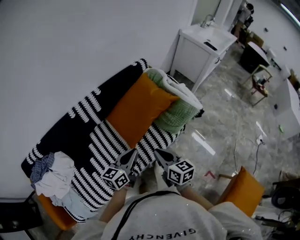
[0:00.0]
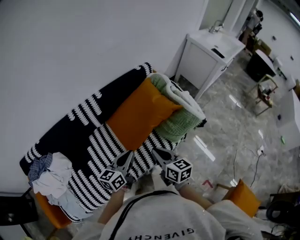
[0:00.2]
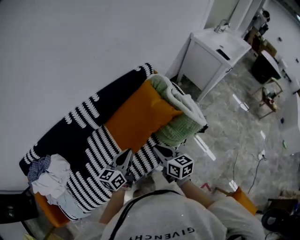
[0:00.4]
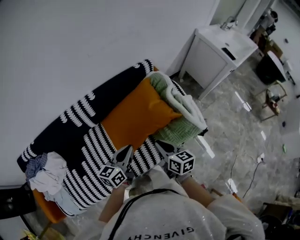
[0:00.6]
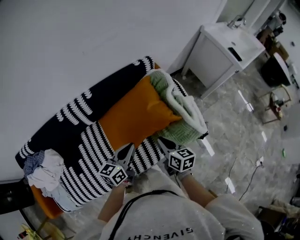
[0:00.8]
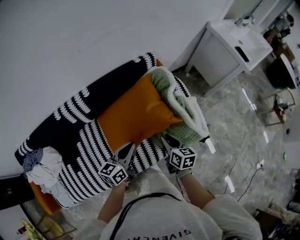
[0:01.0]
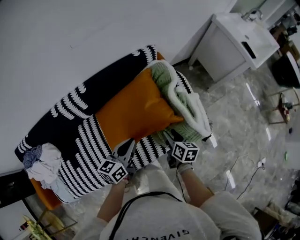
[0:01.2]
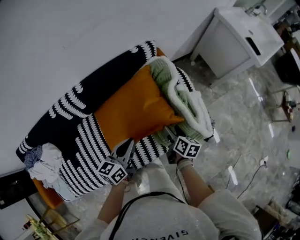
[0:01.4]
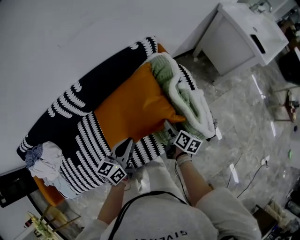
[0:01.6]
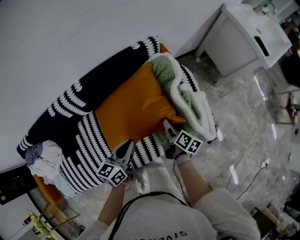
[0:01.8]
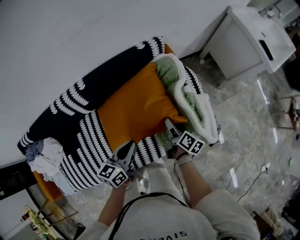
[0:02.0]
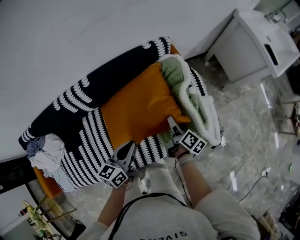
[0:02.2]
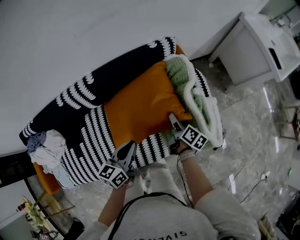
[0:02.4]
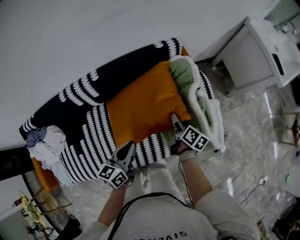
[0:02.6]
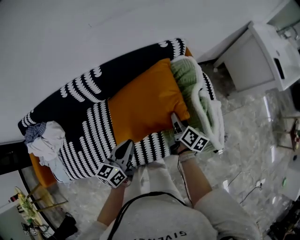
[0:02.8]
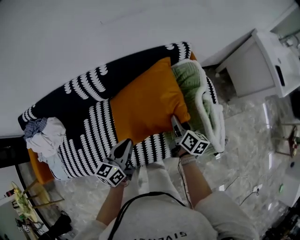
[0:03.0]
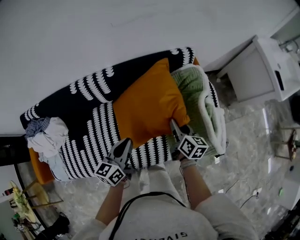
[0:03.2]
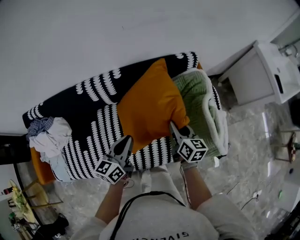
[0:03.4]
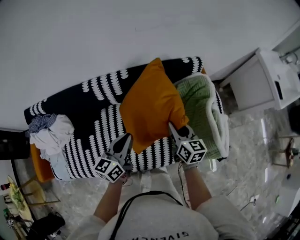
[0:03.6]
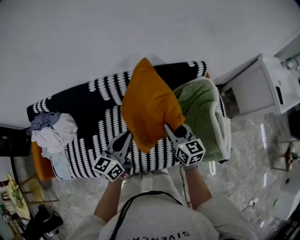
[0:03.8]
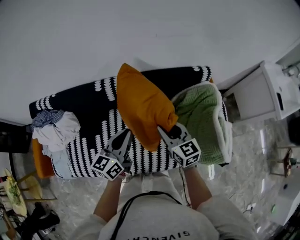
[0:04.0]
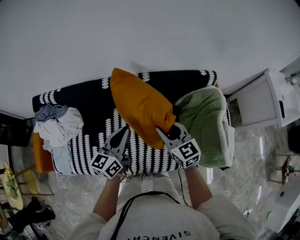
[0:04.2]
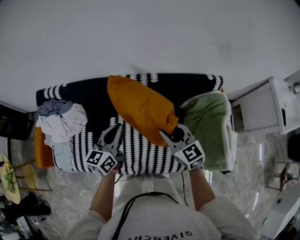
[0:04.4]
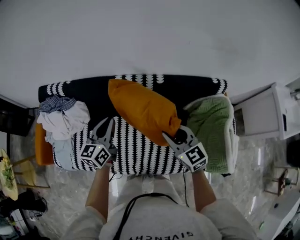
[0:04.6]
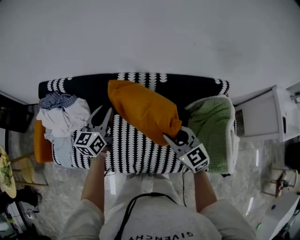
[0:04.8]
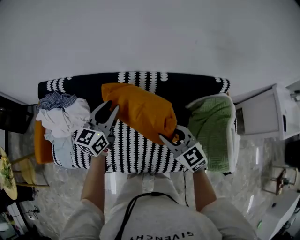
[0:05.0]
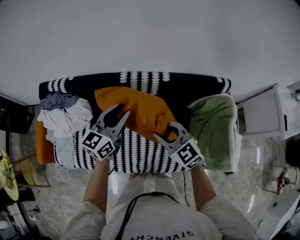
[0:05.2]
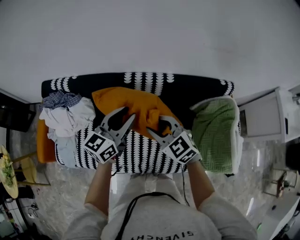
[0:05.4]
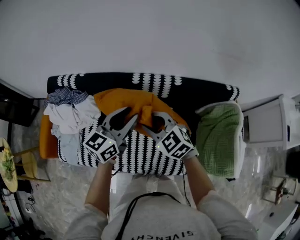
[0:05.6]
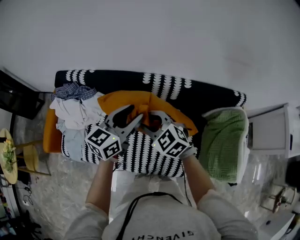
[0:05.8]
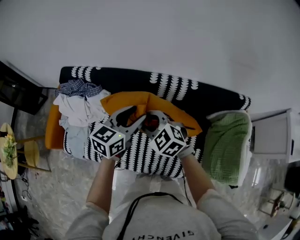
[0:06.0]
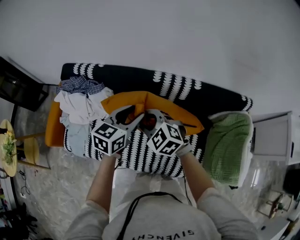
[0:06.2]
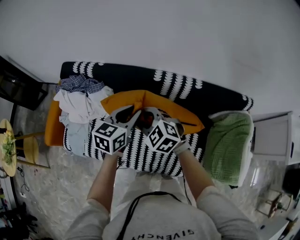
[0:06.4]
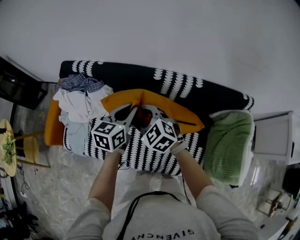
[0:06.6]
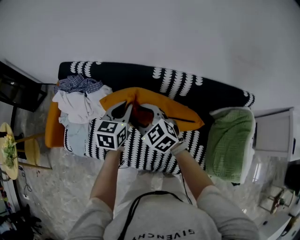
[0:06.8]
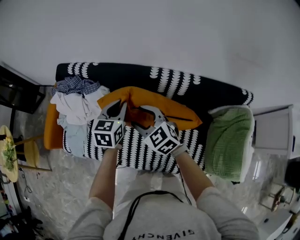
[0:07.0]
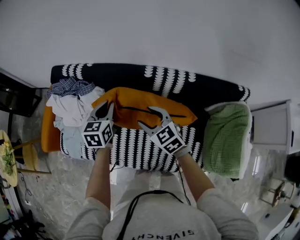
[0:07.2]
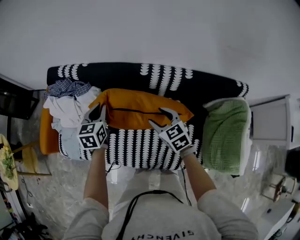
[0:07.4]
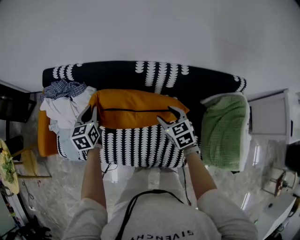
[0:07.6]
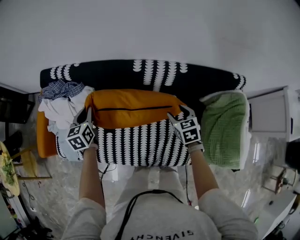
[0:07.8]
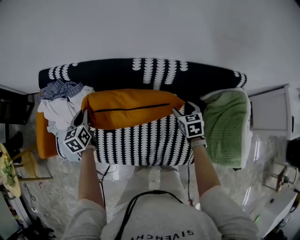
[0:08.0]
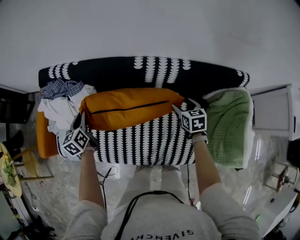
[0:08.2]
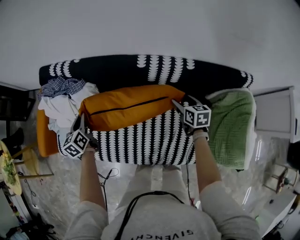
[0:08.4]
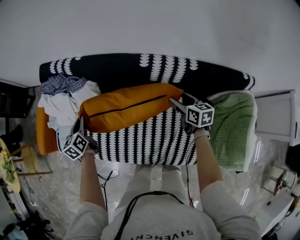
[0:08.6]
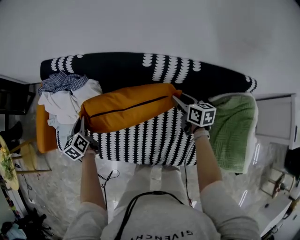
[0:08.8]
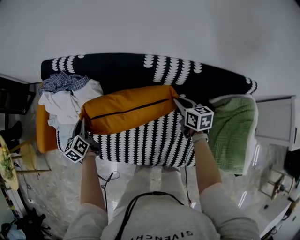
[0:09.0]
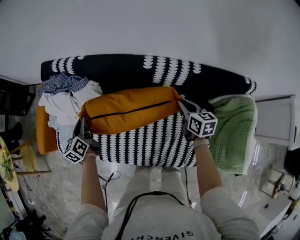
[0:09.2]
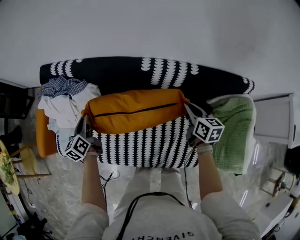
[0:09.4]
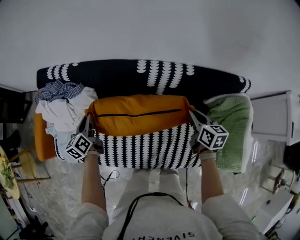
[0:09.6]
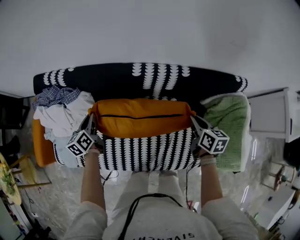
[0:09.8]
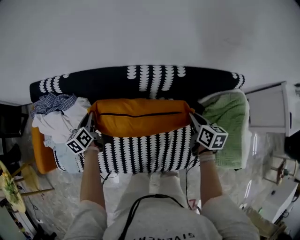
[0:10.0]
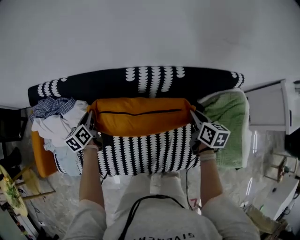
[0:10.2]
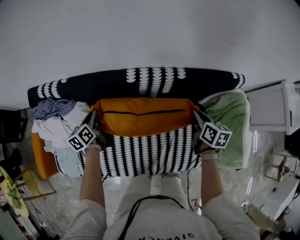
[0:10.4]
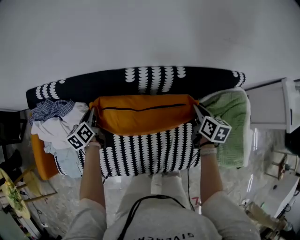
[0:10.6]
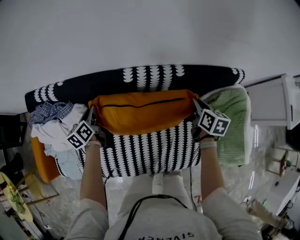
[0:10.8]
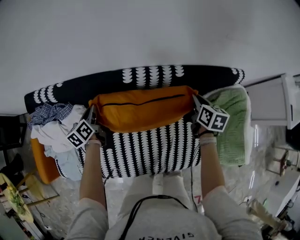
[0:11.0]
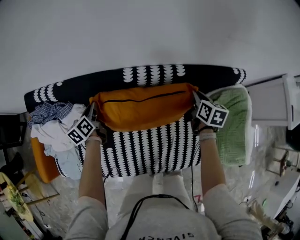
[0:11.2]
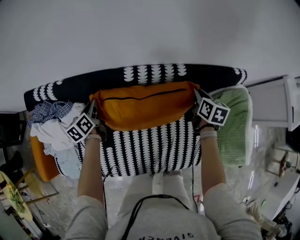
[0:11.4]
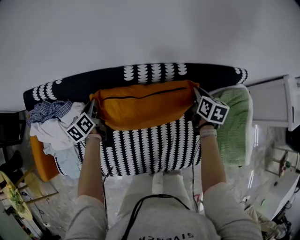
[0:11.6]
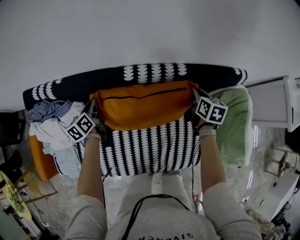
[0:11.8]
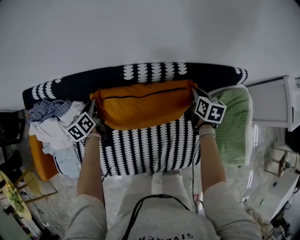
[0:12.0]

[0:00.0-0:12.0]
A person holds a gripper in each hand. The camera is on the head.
0:00.0 to 0:01.6: The left gripper shifts approximately 25 cm forward and to the right, and changes its angle by some 20 degrees. Meanwhile the right gripper heads forward, to the right and downward, covering about 50 cm, turns by approximately 30 degrees, and opens up.
0:01.6 to 0:03.0: The grippers both shift to the left by approximately 10 cm. The right gripper closes up.
0:03.0 to 0:04.4: Both grippers move to the left and upward, approximately 30 cm. The left gripper swivels approximately 20 degrees, while the right gripper rolls counterclockwise, seen from behind, by some 60 degrees.
0:04.4 to 0:06.0: The left gripper swings left and right, roughly 10 cm each way, with 2 reversals, and opens. Meanwhile the right gripper travels to the left by about 25 cm, and changes its angle by about 40 degrees.
0:06.0 to 0:07.6: The left gripper shifts some 20 cm to the left, downward and forward, rotates roughly 30 degrees, and closes its fingers, while the right gripper moves to the right and downward, some 20 cm, and rotates roughly 40 degrees.
0:07.6 to 0:09.0: The right gripper moves forward, about 5 cm, swivels about 30 degrees, and closes up. The left gripper shifts some 15 cm to the left and downward, and swivels roughly 30 degrees.
0:09.0 to 0:10.4: The right gripper changes place by some 15 cm, and changes its angle by roughly 30 degrees, while the left gripper ends up approximately 20 cm from where it was.
0:10.4 to 0:12.0: The left gripper is displaced forward by about 5 cm. Meanwhile the right gripper is displaced forward by some 10 cm.

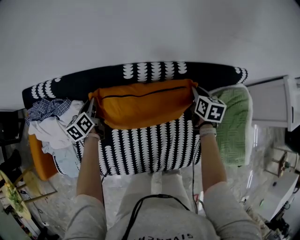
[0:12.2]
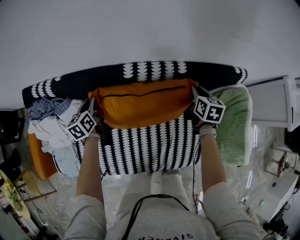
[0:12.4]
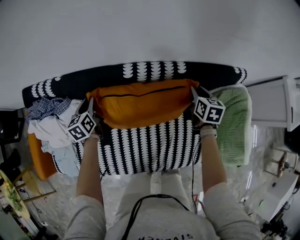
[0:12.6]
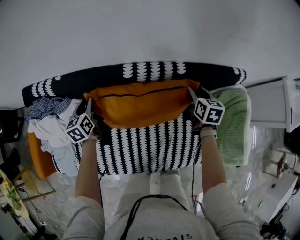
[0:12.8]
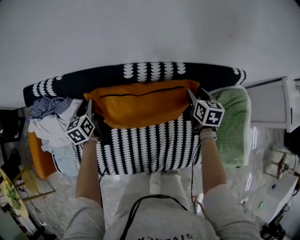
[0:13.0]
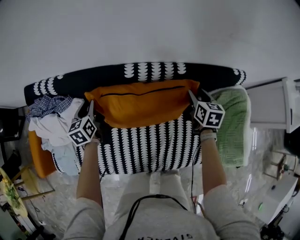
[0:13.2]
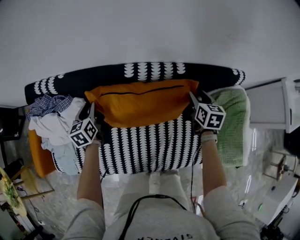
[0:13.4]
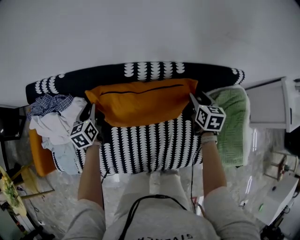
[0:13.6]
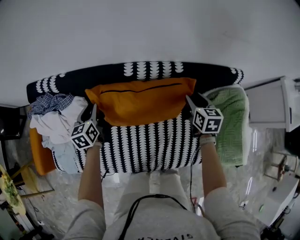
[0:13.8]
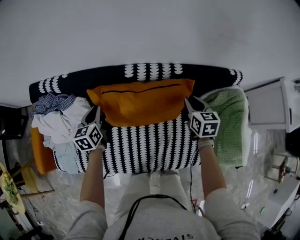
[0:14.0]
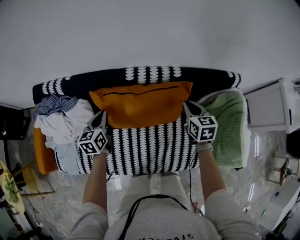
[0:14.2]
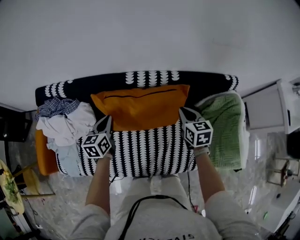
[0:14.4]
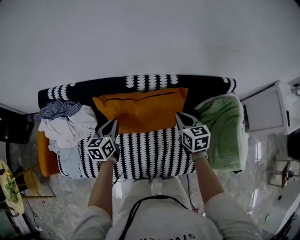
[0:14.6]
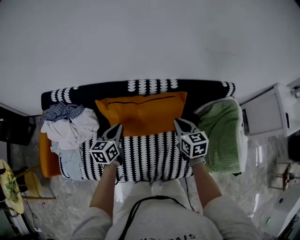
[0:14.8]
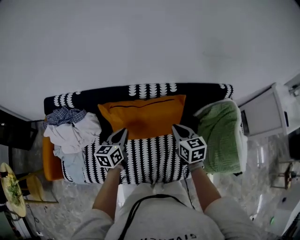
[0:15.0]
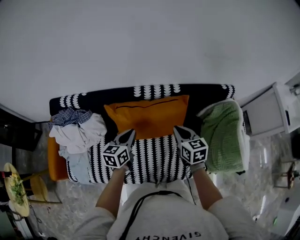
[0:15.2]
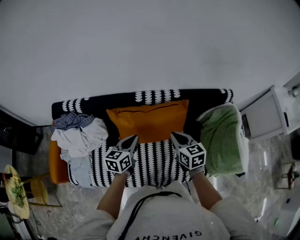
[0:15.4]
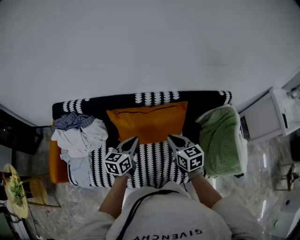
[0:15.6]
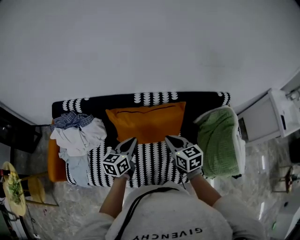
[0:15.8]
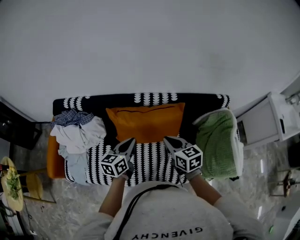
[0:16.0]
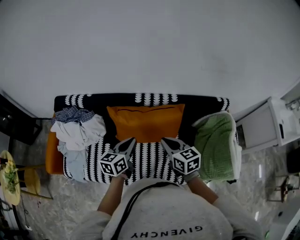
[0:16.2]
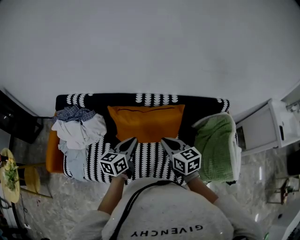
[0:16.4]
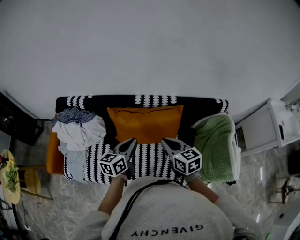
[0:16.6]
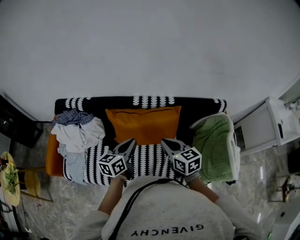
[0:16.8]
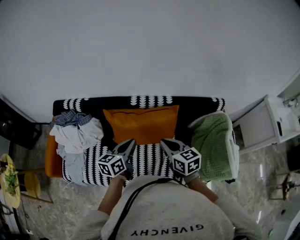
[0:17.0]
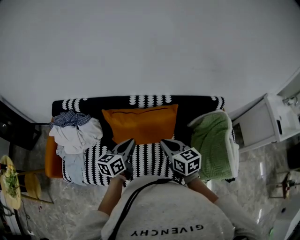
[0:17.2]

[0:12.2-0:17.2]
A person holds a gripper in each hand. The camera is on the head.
0:12.2 to 0:13.8: Both grippers travel together backward, roughly 5 cm. The right gripper opens its fingers.
0:13.8 to 0:15.6: The left gripper goes about 25 cm to the right, backward and upward, changes its angle by some 30 degrees, and closes up. The right gripper travels backward, to the left and upward by some 25 cm, changes its angle by some 20 degrees, and closes.
0:15.6 to 0:17.2: The right gripper moves some 5 cm; the left gripper shifts about 5 cm upward.

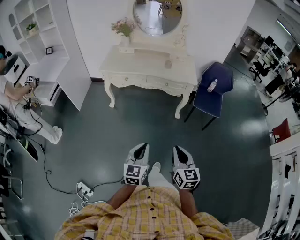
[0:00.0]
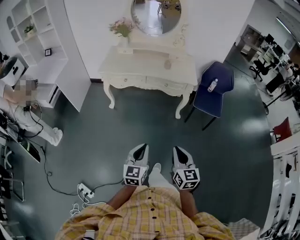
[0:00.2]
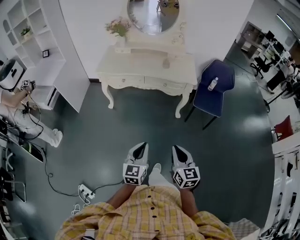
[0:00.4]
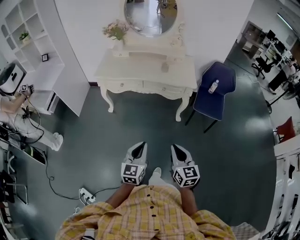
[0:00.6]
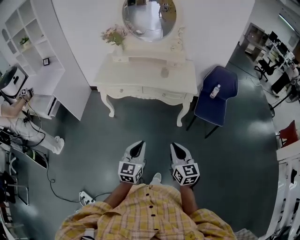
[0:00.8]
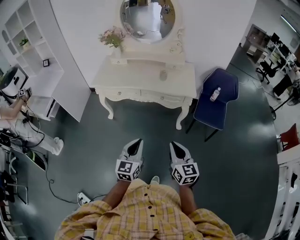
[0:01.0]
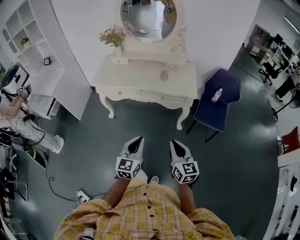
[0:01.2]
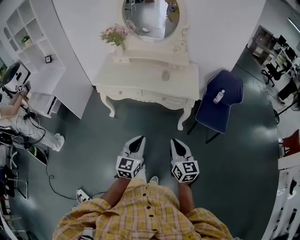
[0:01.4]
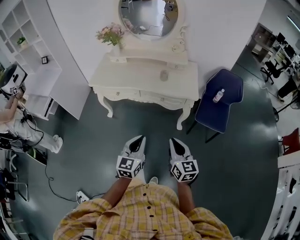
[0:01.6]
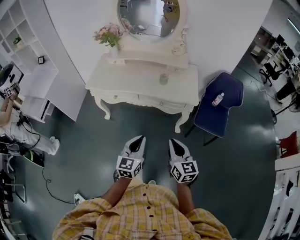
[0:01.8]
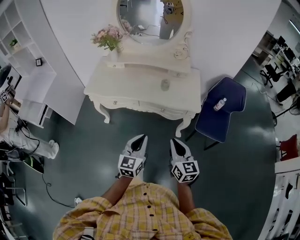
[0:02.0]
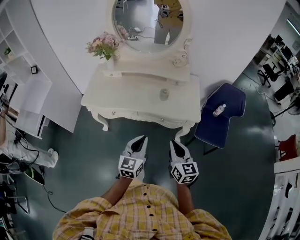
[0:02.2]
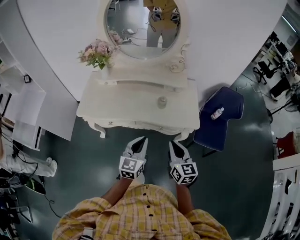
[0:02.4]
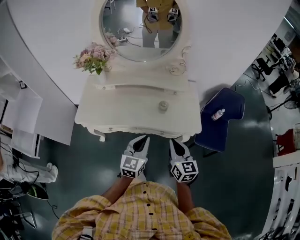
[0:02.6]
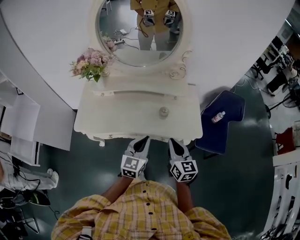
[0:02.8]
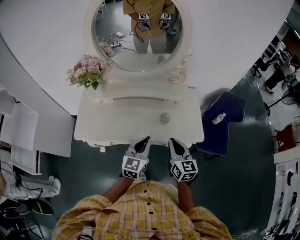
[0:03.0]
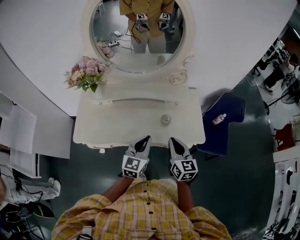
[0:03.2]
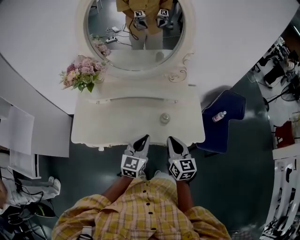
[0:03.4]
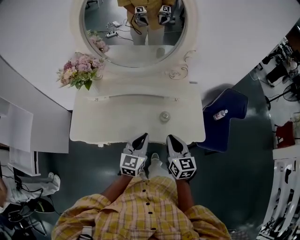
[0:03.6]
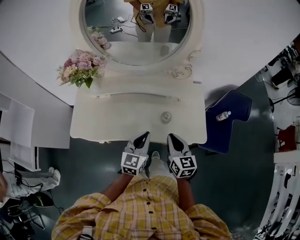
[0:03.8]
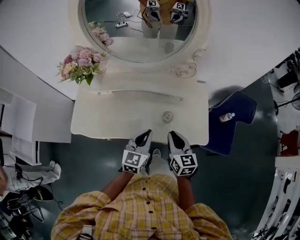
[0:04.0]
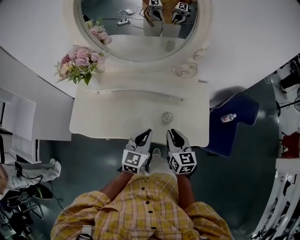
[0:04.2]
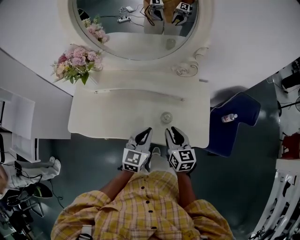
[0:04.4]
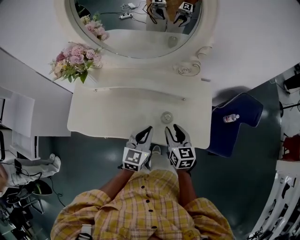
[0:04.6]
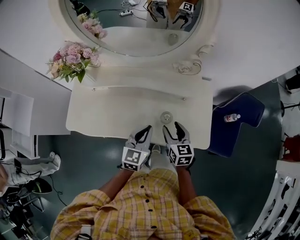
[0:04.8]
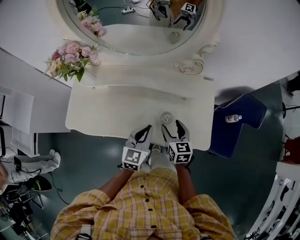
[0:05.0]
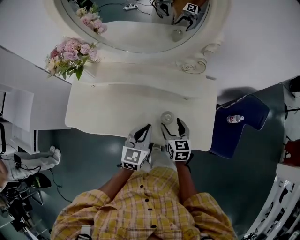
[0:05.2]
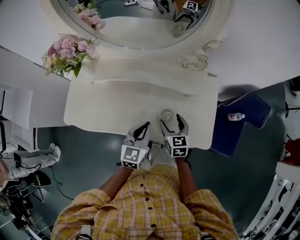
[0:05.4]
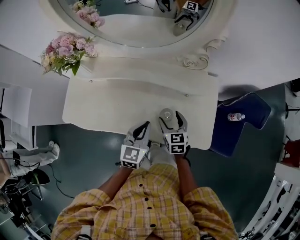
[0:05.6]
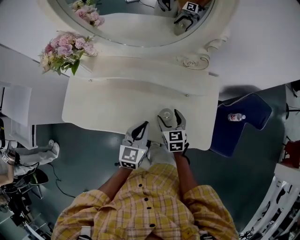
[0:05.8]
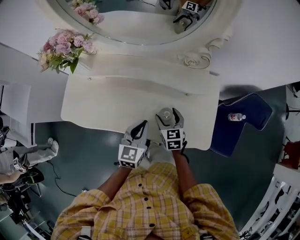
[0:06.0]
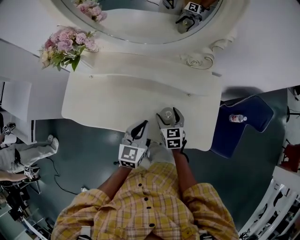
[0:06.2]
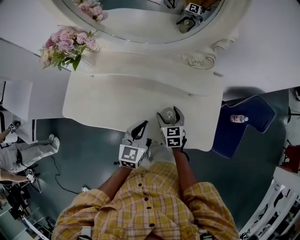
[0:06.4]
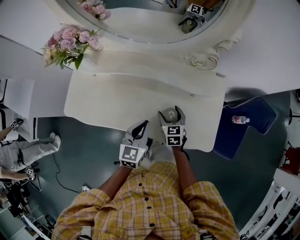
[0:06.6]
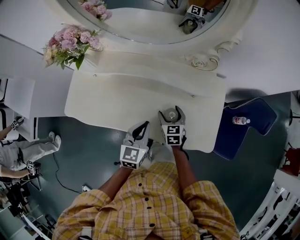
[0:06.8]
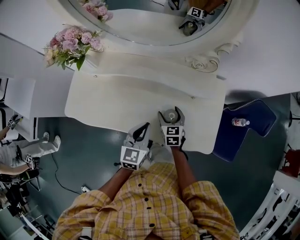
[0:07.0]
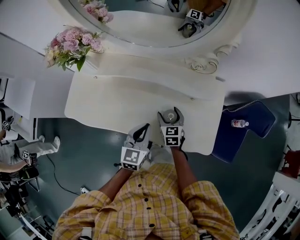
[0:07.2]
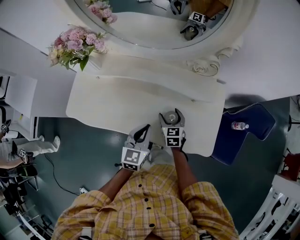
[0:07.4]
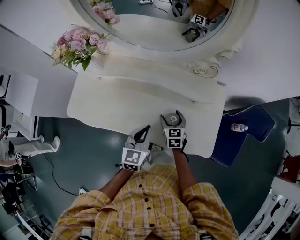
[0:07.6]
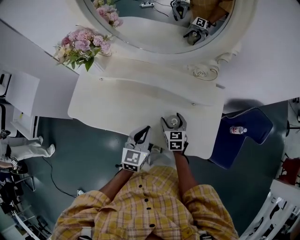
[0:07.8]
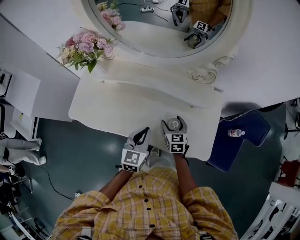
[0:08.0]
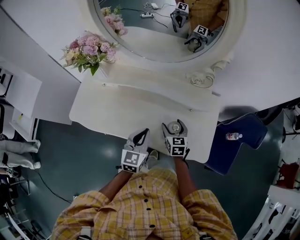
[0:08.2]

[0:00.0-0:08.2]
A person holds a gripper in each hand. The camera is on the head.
0:00.0 to 0:01.6: The grippers both shift forward by roughly 25 cm.
0:01.6 to 0:03.2: The pair of grippers is taken forward, some 40 cm.
0:03.2 to 0:05.0: The right gripper moves downward and forward, about 20 cm, and opens up. Meanwhile the left gripper moves forward and downward, approximately 15 cm.
0:05.0 to 0:06.6: The right gripper heads downward and forward, covering roughly 10 cm.
0:06.6 to 0:08.2: The grippers make only small movements.
